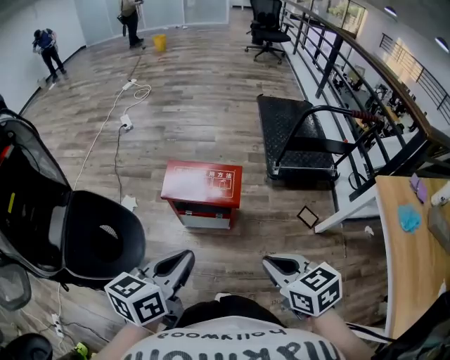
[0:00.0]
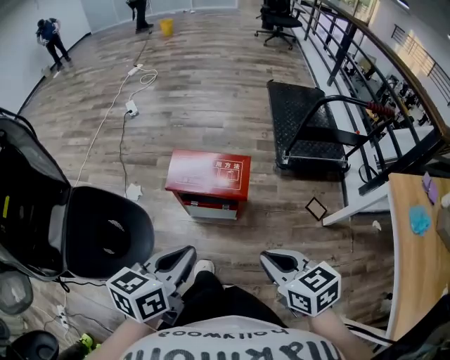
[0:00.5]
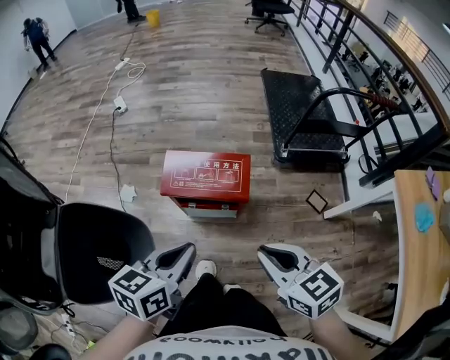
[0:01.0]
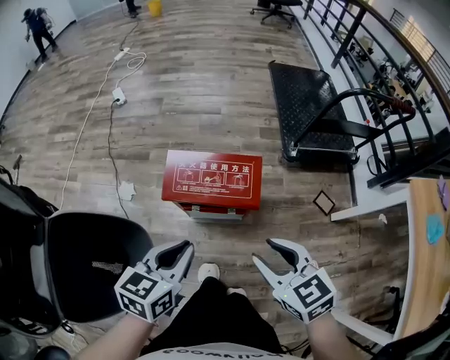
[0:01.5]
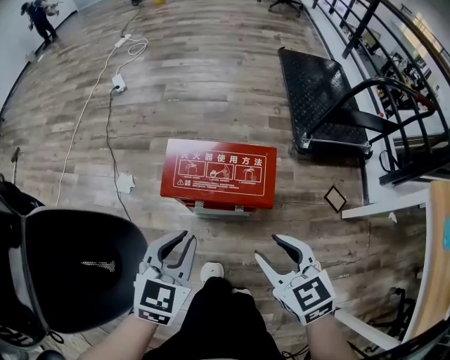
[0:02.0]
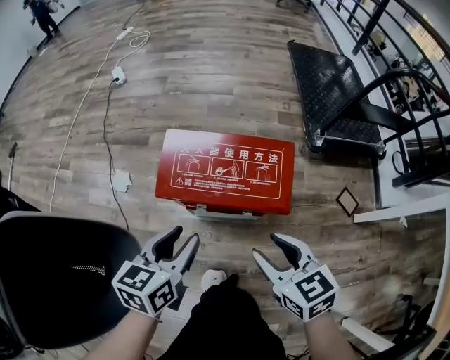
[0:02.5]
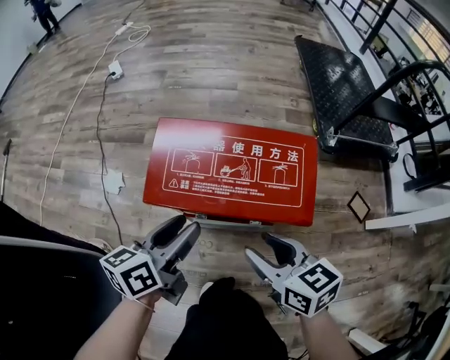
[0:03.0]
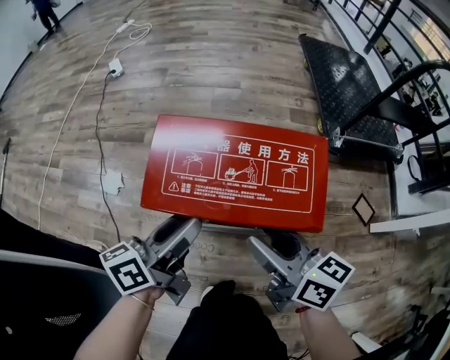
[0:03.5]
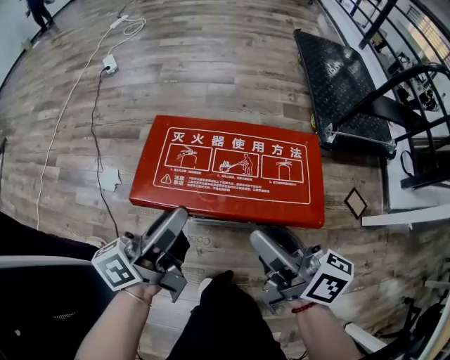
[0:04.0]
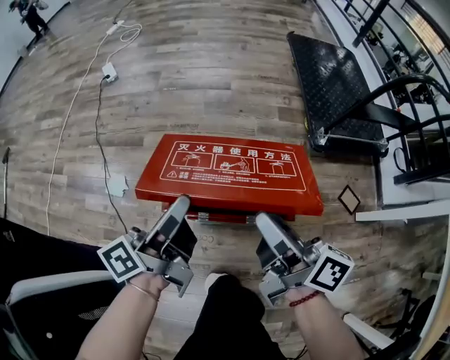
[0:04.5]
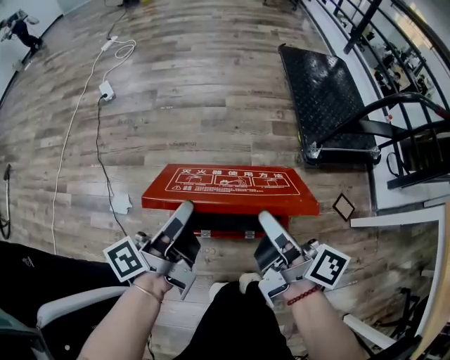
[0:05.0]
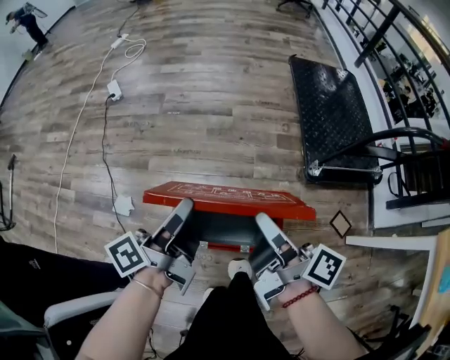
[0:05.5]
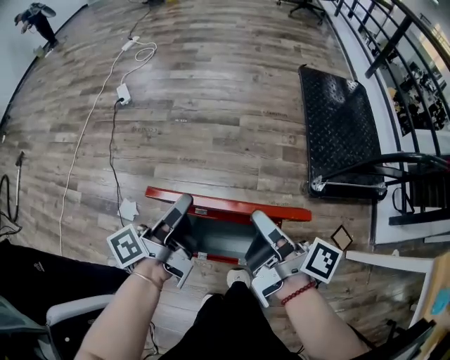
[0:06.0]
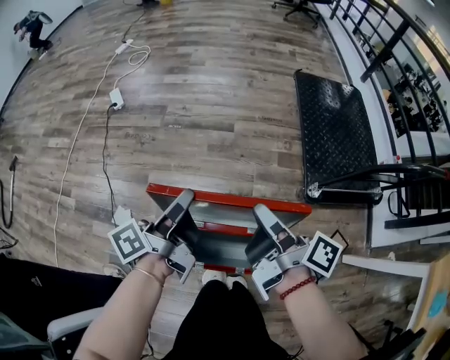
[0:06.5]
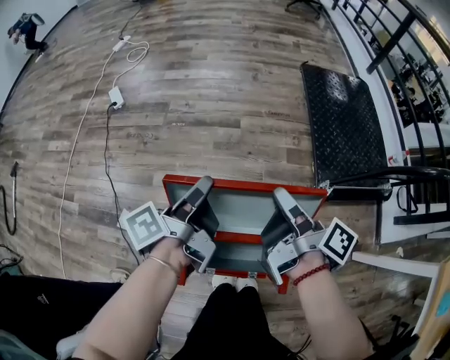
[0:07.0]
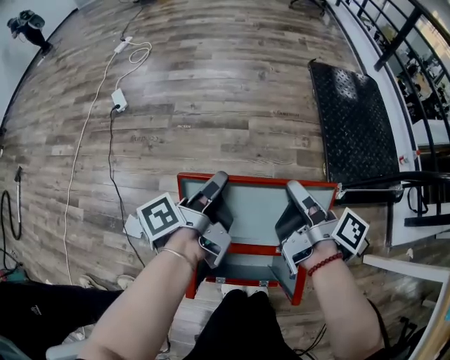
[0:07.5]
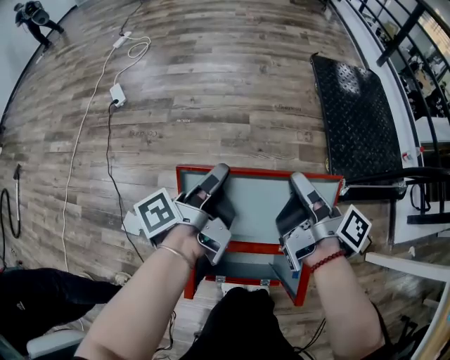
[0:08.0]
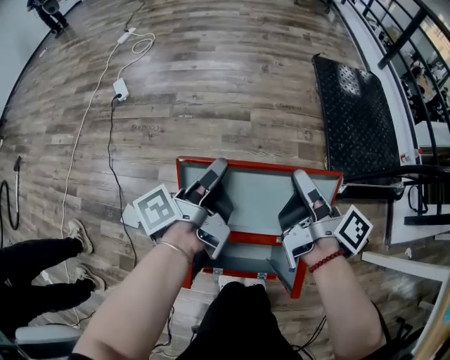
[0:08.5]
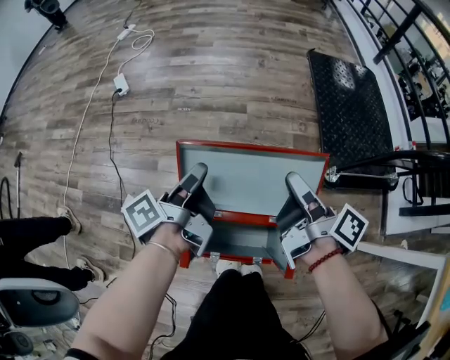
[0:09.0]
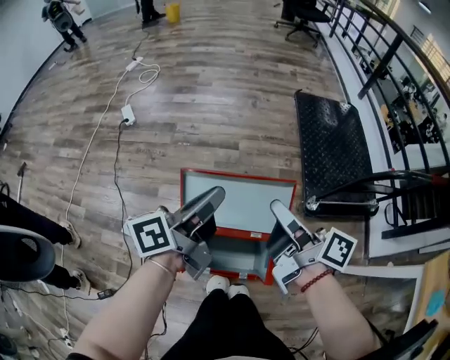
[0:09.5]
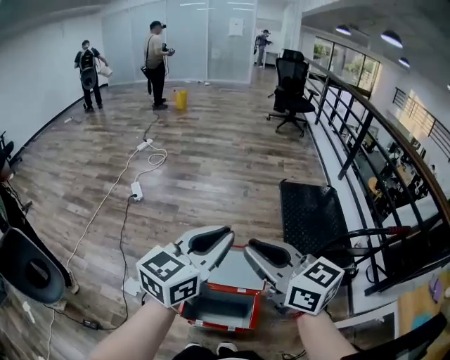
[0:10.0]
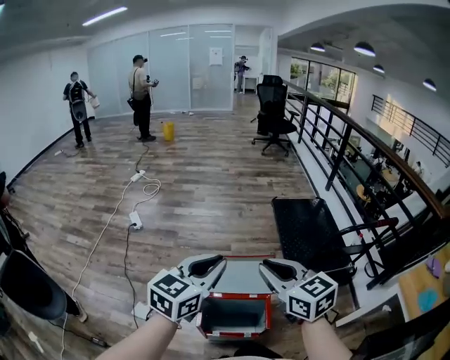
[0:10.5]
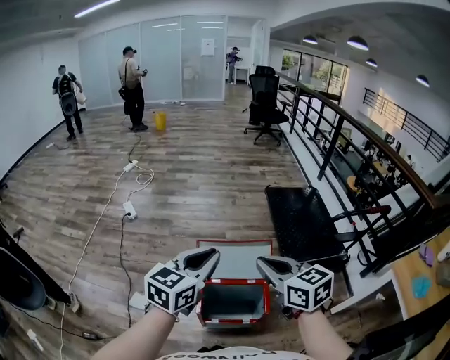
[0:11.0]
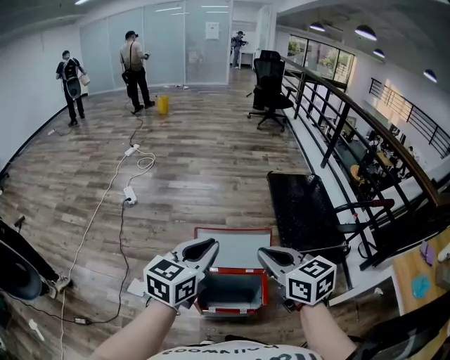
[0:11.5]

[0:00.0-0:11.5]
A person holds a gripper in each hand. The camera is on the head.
0:00.0 to 0:02.0: The left gripper moves downward and forward, about 25 cm, and changes its angle by about 40 degrees; the right gripper is displaced forward, downward and to the left by approximately 25 cm, and opens up.
0:02.0 to 0:04.0: Both grippers travel together downward and forward, roughly 20 cm. The left gripper twists approximately 60 degrees counterclockwise, seen from behind, and opens up, while the right gripper tips its fingers upward by some 40 degrees.
0:04.0 to 0:06.0: The two grippers go approximately 25 cm forward and upward. The right gripper rotates roughly 30 degrees, and closes up; the left gripper swivels some 20 degrees, and closes.
0:06.0 to 0:07.5: Both grippers travel together forward and downward, roughly 15 cm.
0:07.5 to 0:09.5: The grippers both shift upward and backward by about 20 cm. The right gripper rotates some 20 degrees. The left gripper changes its angle by some 30 degrees.
0:09.5 to 0:11.5: The right gripper shifts roughly 25 cm backward, upward and to the left, and twists some 60 degrees counterclockwise, seen from behind. The left gripper heads backward and upward, covering some 20 cm, and twists about 50 degrees clockwise, seen from behind.

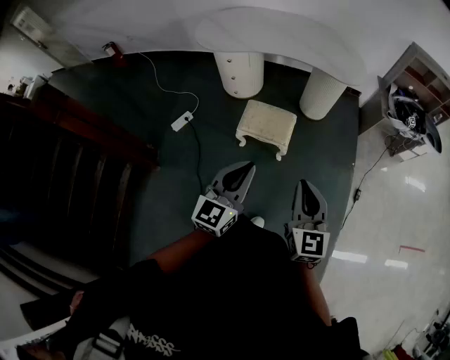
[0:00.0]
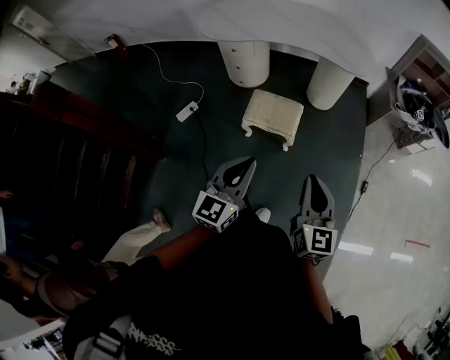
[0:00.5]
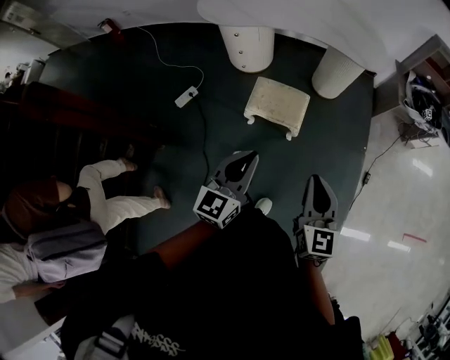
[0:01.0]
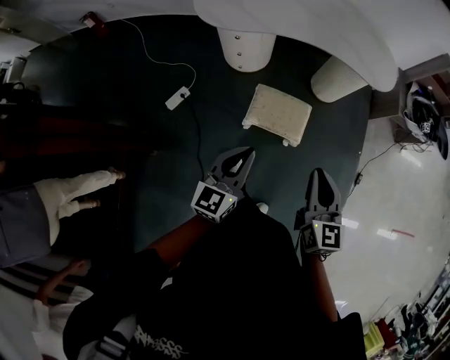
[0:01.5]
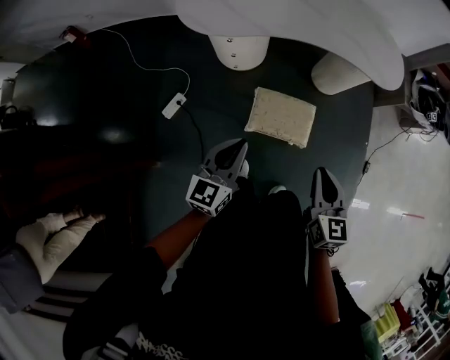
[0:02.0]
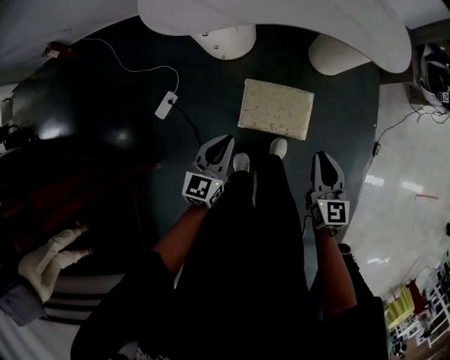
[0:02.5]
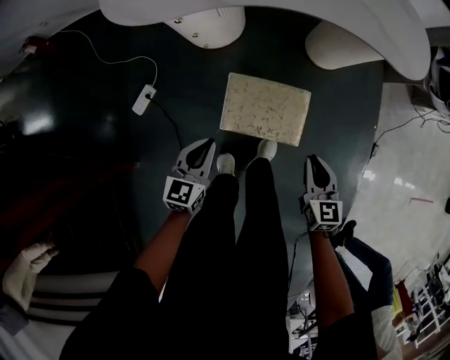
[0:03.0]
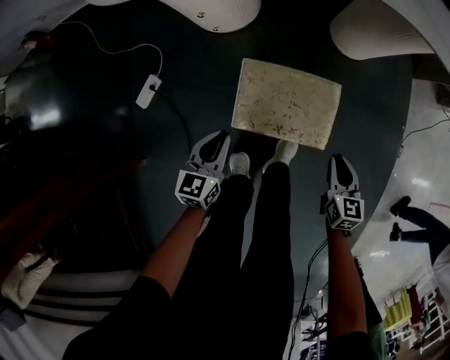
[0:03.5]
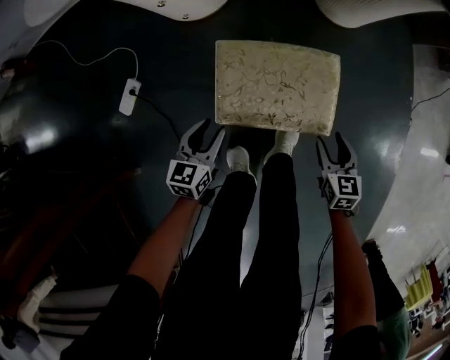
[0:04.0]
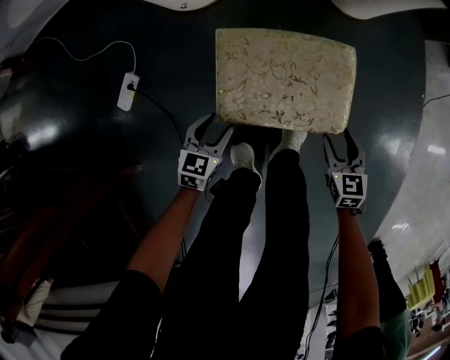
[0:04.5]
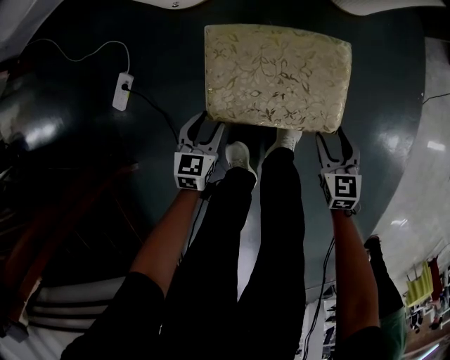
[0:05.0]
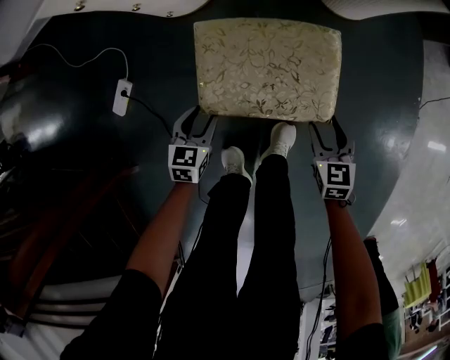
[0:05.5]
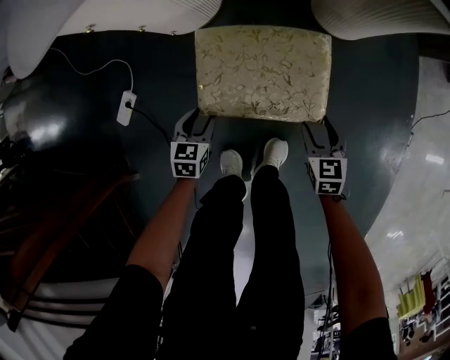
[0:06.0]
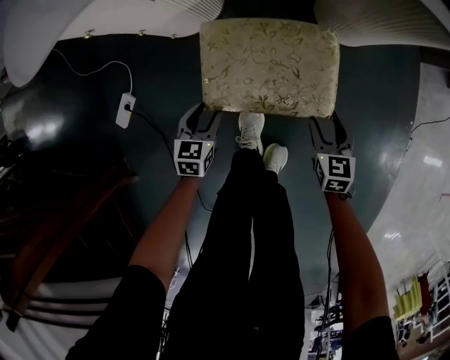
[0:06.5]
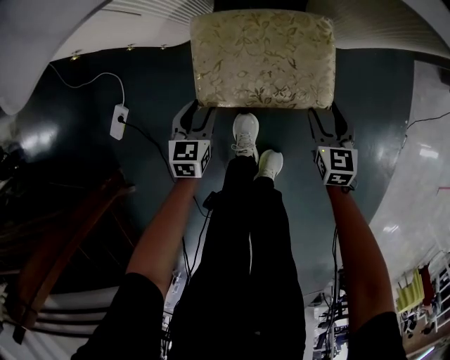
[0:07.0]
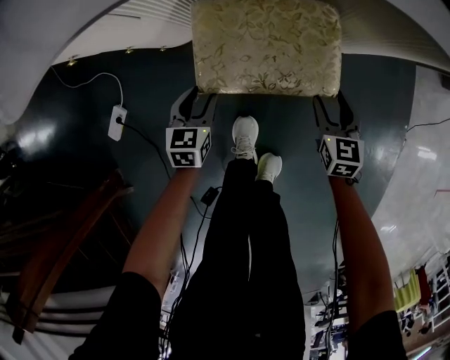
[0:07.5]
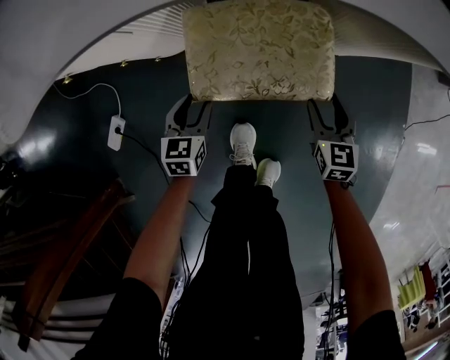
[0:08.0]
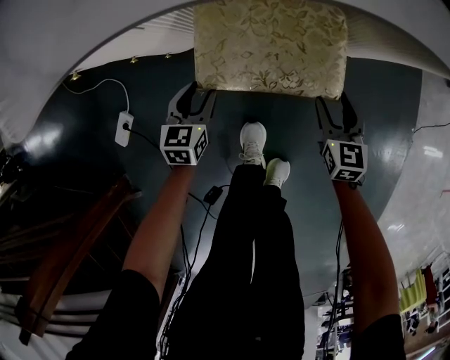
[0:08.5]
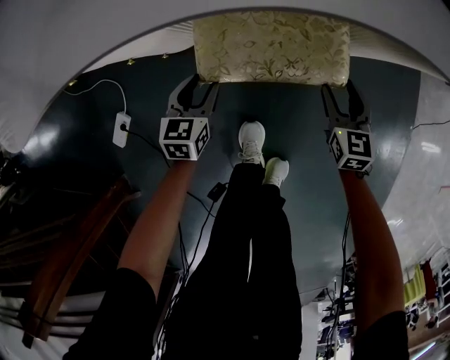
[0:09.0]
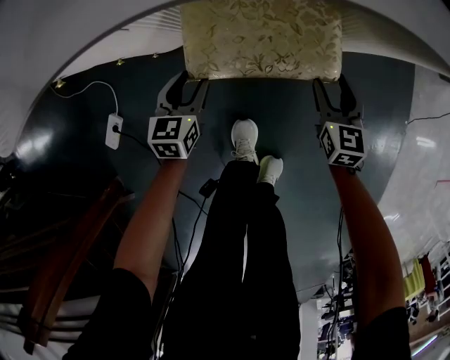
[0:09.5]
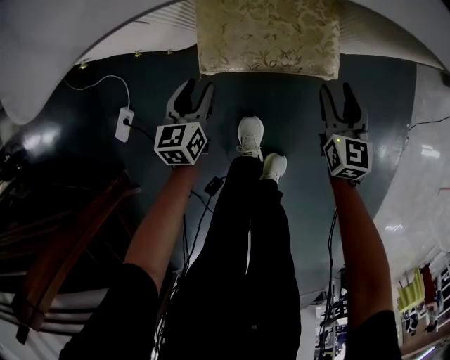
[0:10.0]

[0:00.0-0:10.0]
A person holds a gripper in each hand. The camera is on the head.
0:00.0 to 0:02.0: The two grippers go roughly 35 cm forward, to the left and downward.
0:02.0 to 0:04.0: The two grippers go roughly 60 cm downward. The left gripper changes its angle by approximately 20 degrees, and opens, while the right gripper opens.
0:04.0 to 0:06.0: The right gripper travels downward by roughly 5 cm. The left gripper shifts some 10 cm downward.
0:06.0 to 0:08.0: The grippers move only a little.
0:08.0 to 0:10.0: The left gripper shifts by roughly 5 cm. The right gripper is displaced upward by roughly 5 cm.

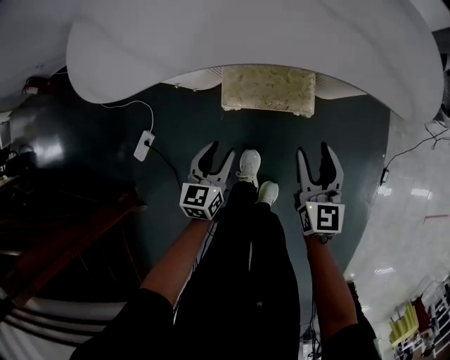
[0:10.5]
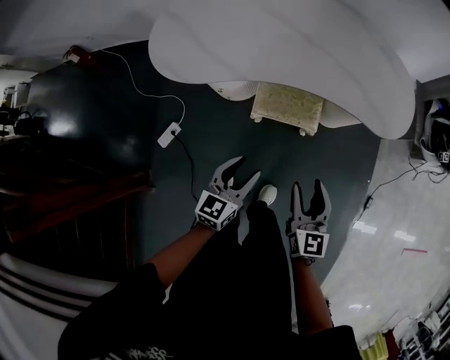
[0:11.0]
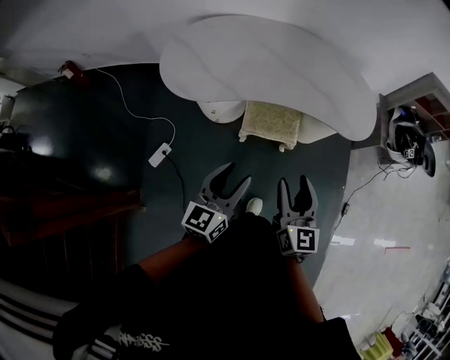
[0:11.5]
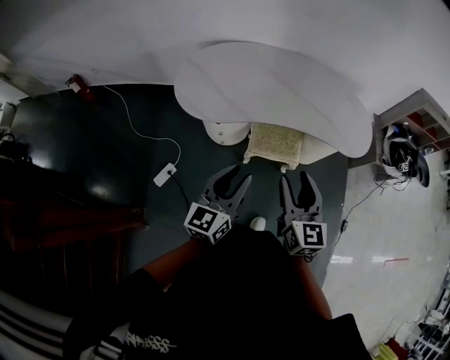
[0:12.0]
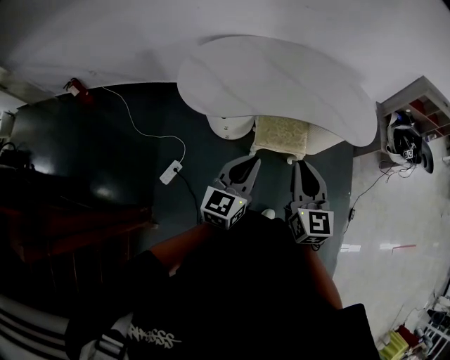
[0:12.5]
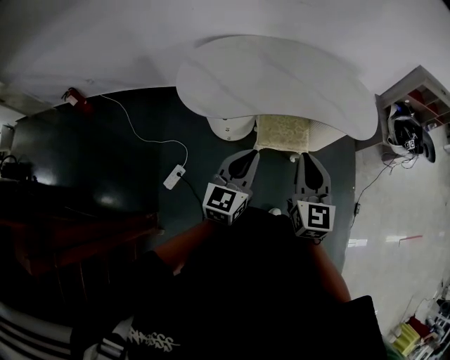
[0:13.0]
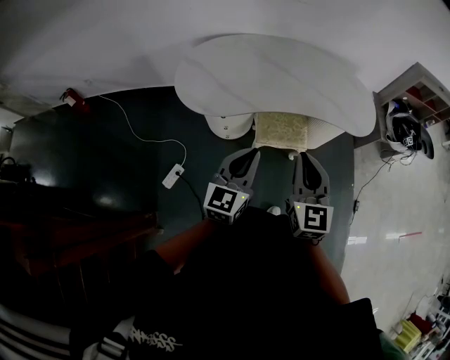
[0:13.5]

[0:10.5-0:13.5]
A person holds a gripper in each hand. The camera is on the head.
0:10.5 to 0:12.0: Both grippers move upward, approximately 50 cm. The left gripper turns by about 30 degrees.
0:12.0 to 0:13.5: The left gripper closes its fingers, while the right gripper closes up.

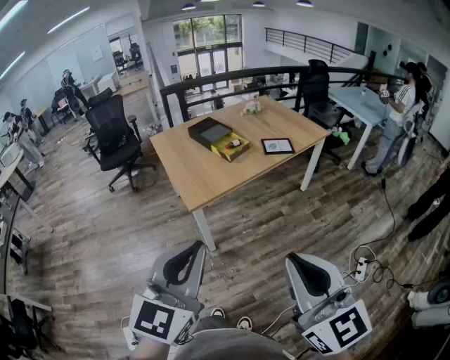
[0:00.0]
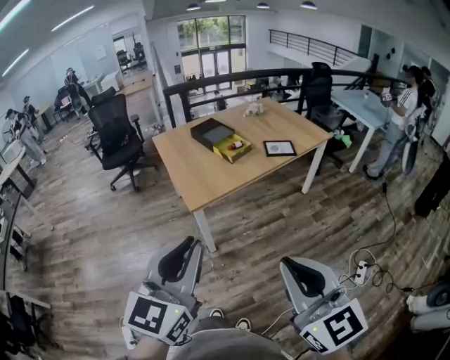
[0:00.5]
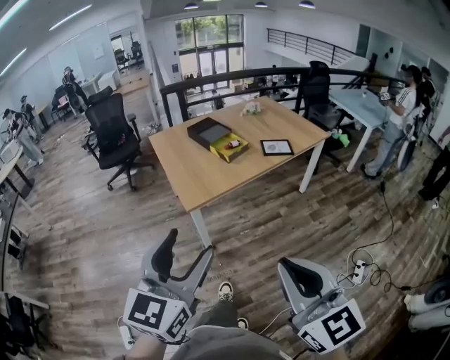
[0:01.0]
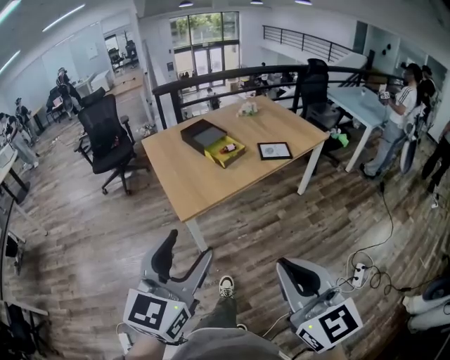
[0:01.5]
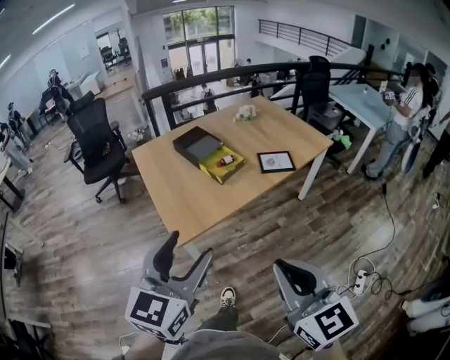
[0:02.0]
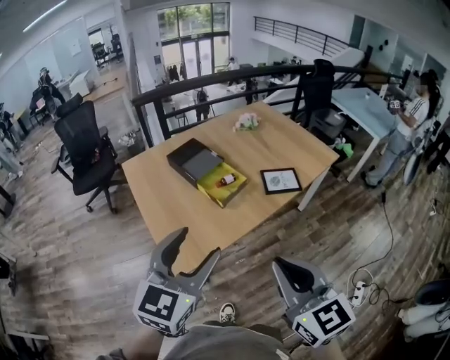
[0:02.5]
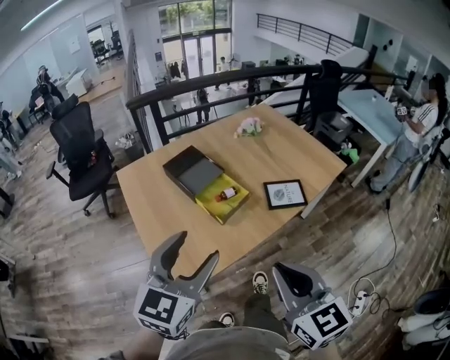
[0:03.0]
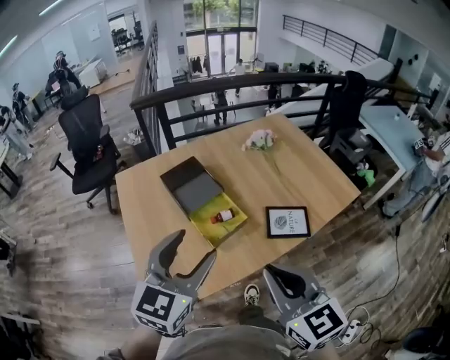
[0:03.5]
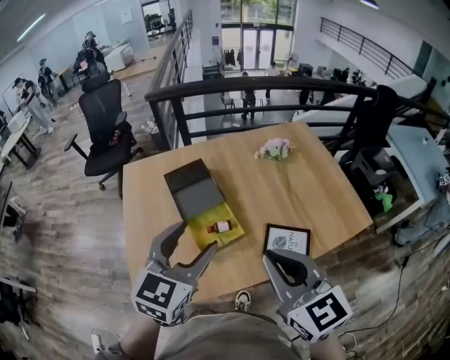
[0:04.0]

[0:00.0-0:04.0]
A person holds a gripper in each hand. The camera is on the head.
0:00.0 to 0:02.0: Both grippers travel together forward, approximately 25 cm. The left gripper opens its fingers.
0:02.0 to 0:04.0: Both grippers are carried forward, some 50 cm. The right gripper swivels some 20 degrees.
